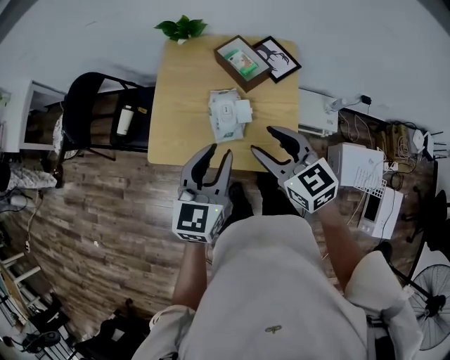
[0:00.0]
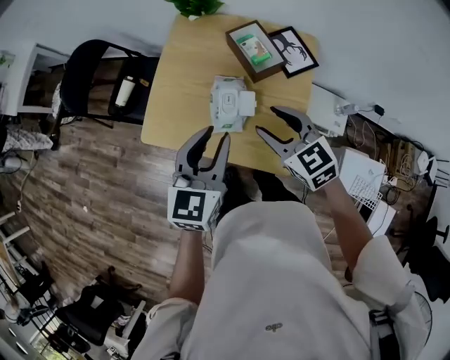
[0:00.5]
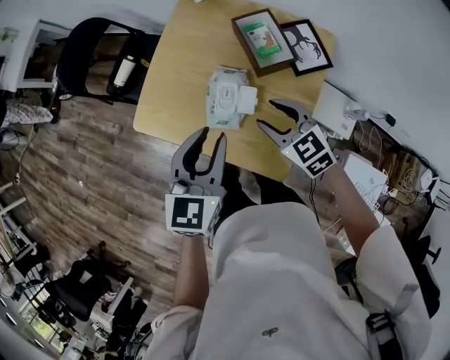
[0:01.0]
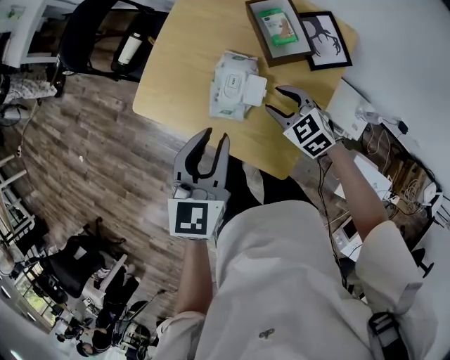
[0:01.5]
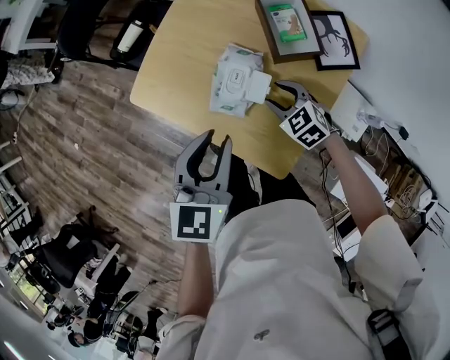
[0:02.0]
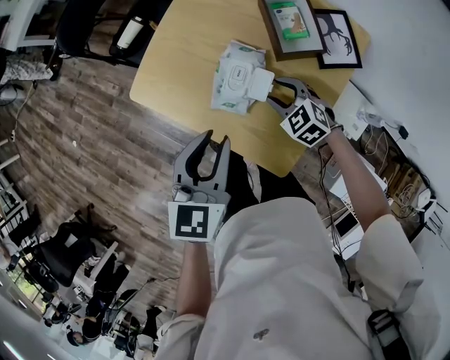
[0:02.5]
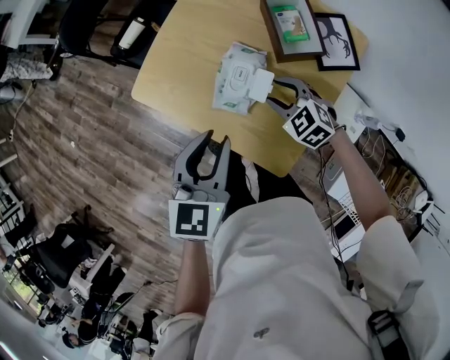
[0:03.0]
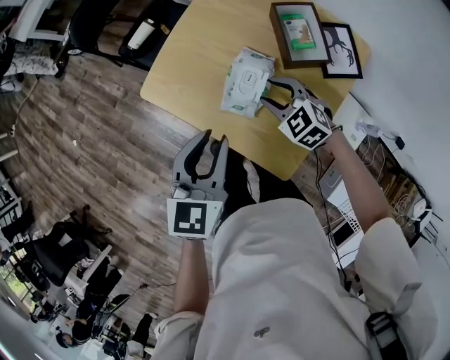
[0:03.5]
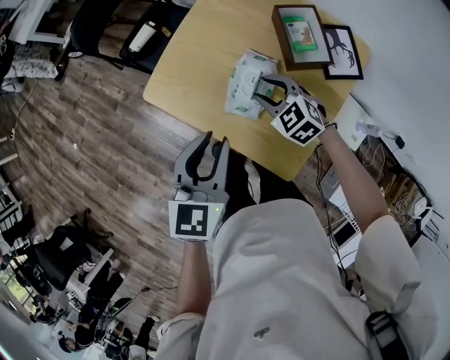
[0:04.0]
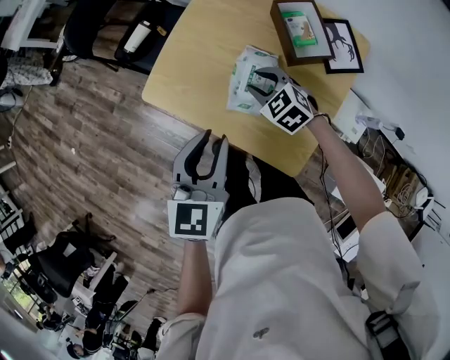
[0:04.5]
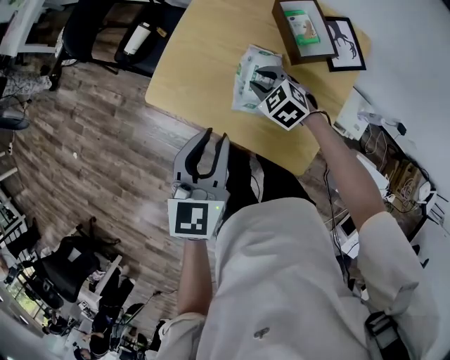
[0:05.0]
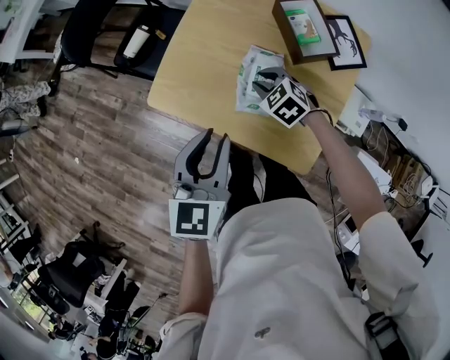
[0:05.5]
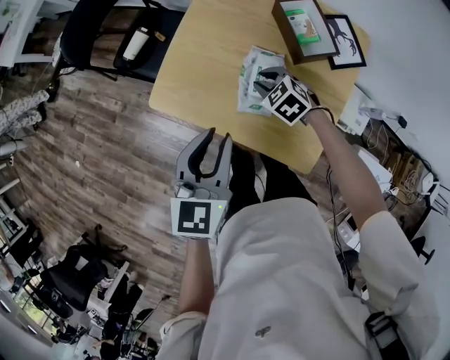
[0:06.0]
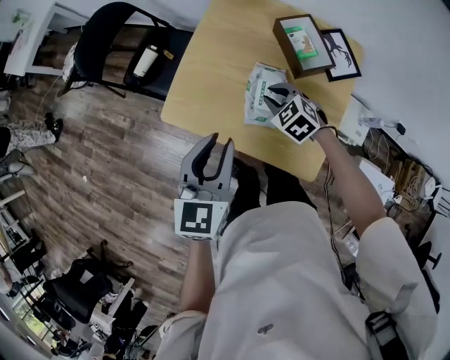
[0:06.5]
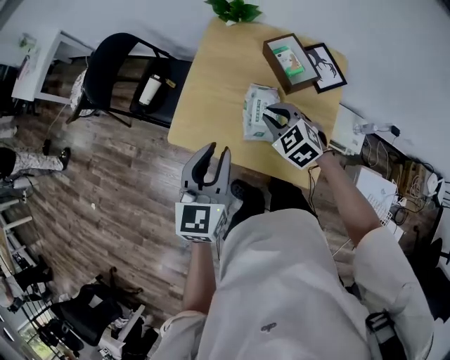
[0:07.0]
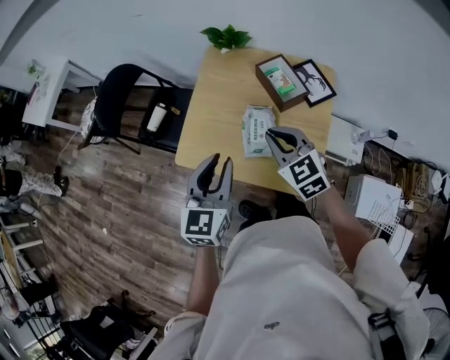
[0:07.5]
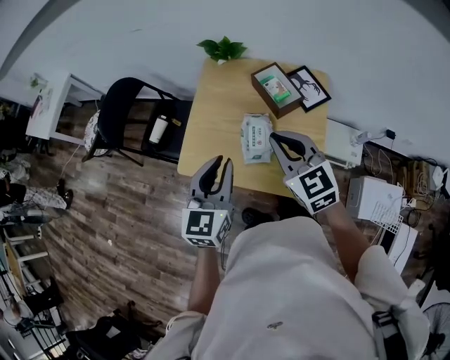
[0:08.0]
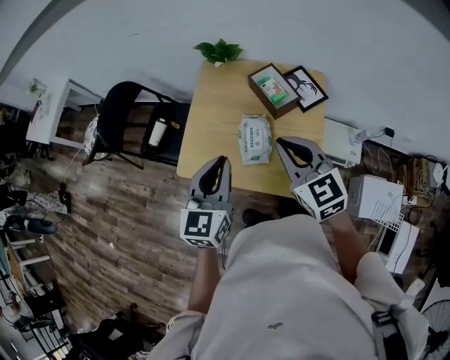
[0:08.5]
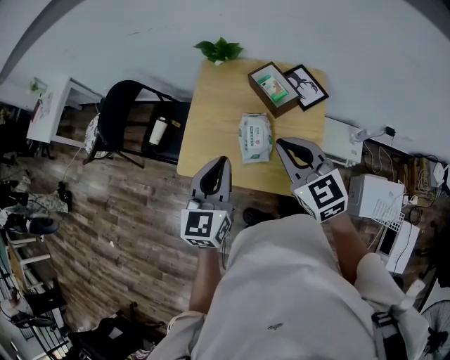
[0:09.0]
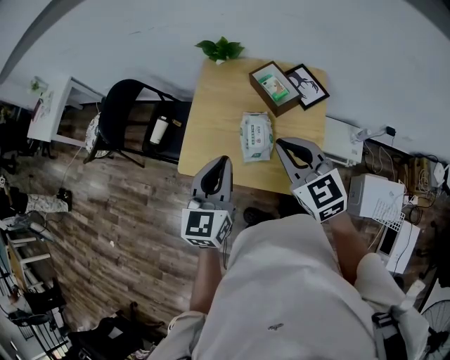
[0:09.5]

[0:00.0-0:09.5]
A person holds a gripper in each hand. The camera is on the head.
0:00.0 to 0:02.0: The left gripper goes some 10 cm downward, and changes its angle by roughly 30 degrees, while the right gripper goes approximately 30 cm downward, and rotates about 40 degrees.
0:02.0 to 0:04.0: The right gripper goes approximately 10 cm to the left and upward; the left gripper goes roughly 5 cm to the left.
0:04.0 to 0:05.5: The right gripper shifts roughly 5 cm downward.
0:05.5 to 0:07.5: The left gripper travels upward by some 10 cm, while the right gripper is displaced upward by roughly 25 cm, and swivels approximately 30 degrees.
0:07.5 to 0:09.5: The right gripper is displaced upward by some 10 cm.

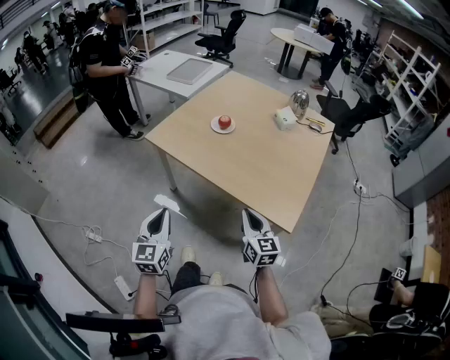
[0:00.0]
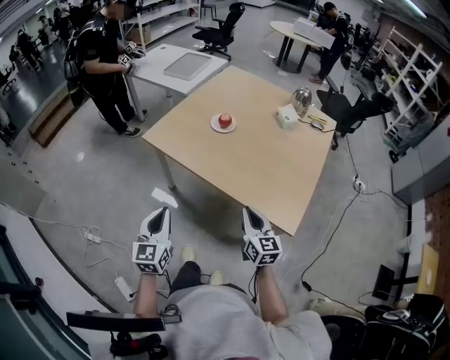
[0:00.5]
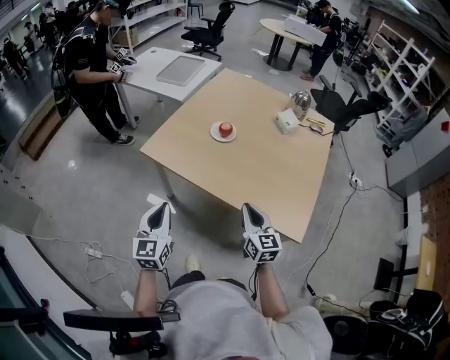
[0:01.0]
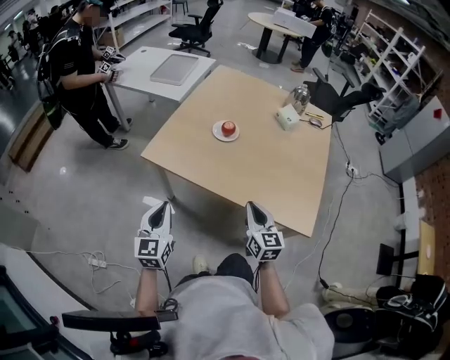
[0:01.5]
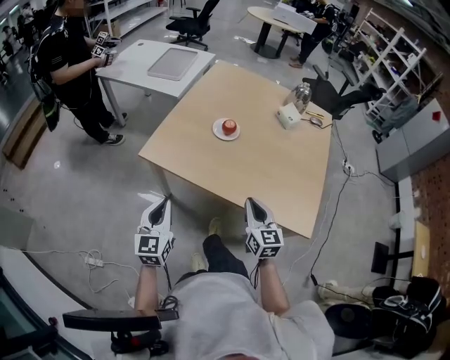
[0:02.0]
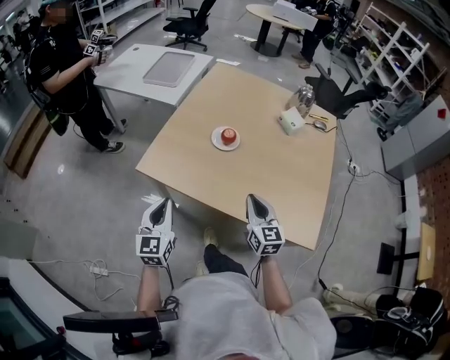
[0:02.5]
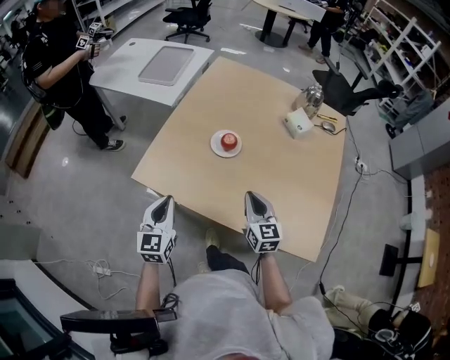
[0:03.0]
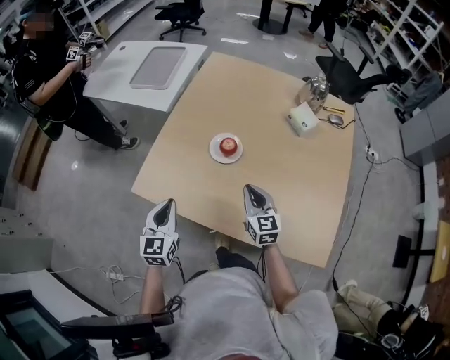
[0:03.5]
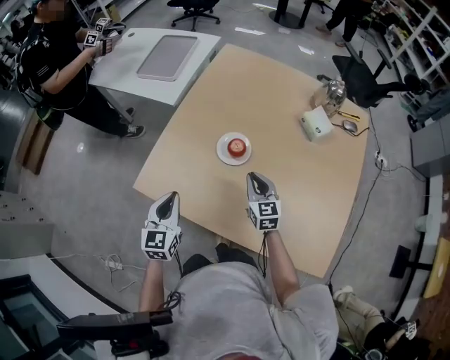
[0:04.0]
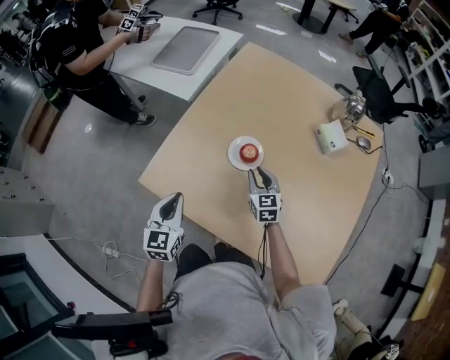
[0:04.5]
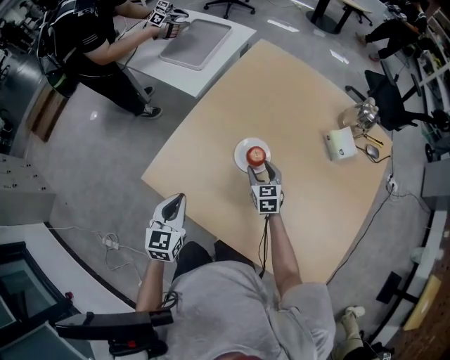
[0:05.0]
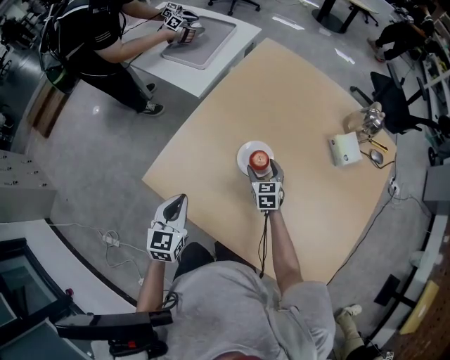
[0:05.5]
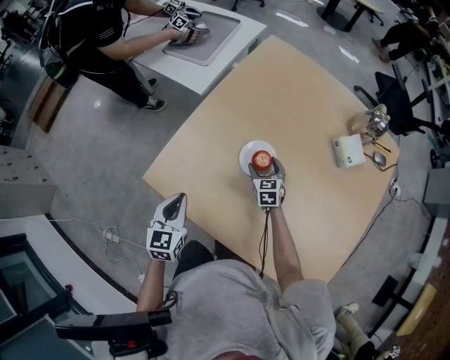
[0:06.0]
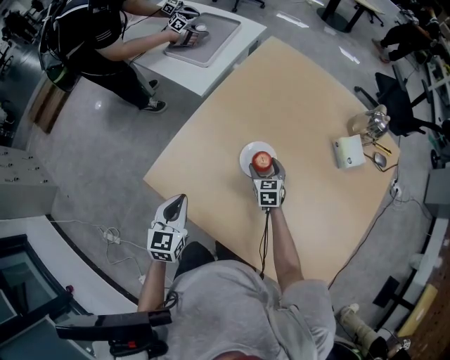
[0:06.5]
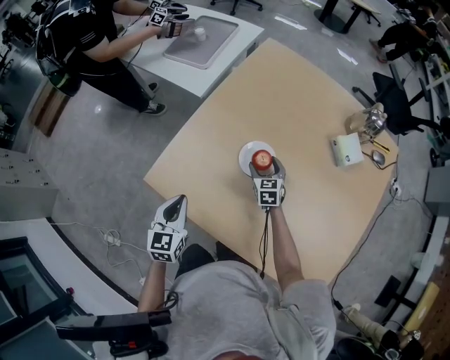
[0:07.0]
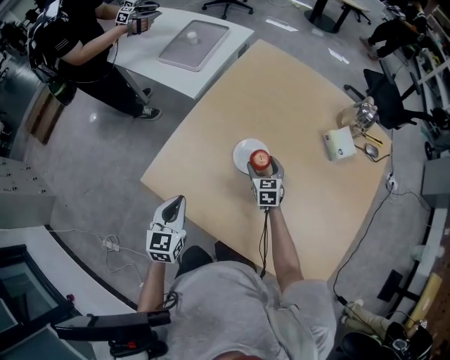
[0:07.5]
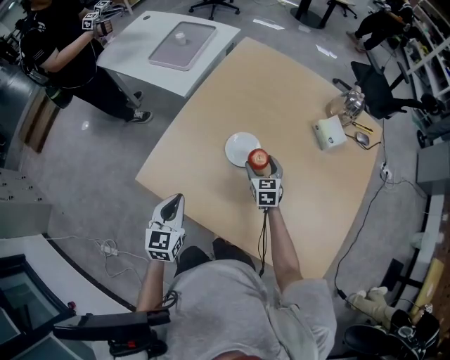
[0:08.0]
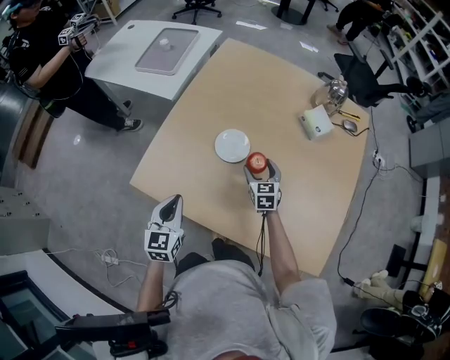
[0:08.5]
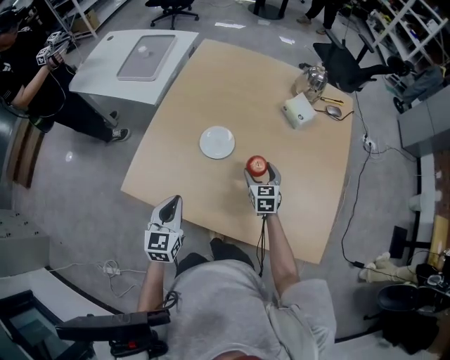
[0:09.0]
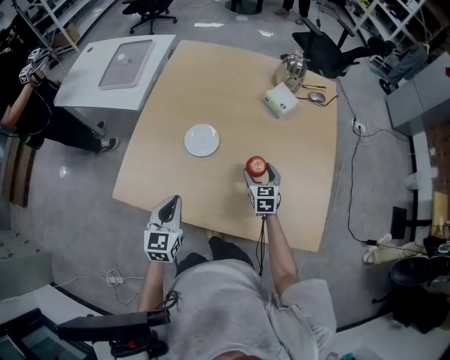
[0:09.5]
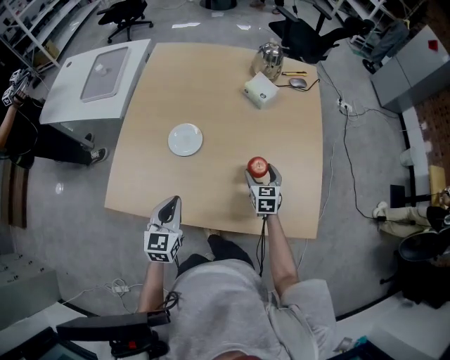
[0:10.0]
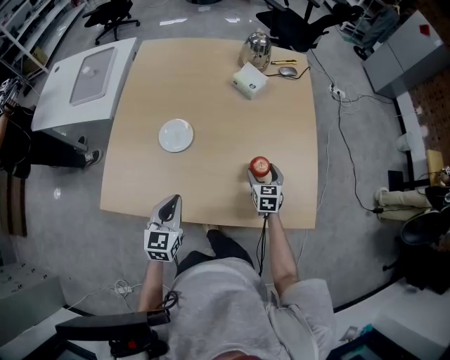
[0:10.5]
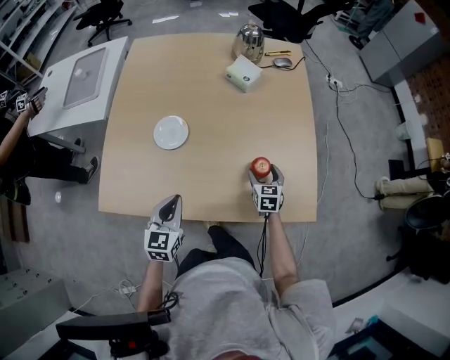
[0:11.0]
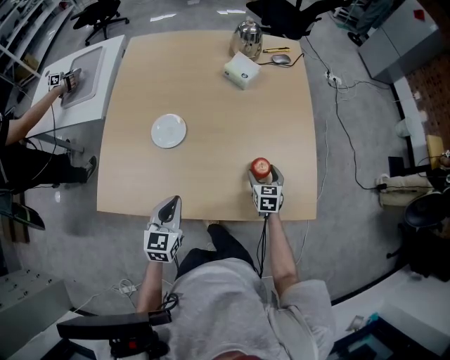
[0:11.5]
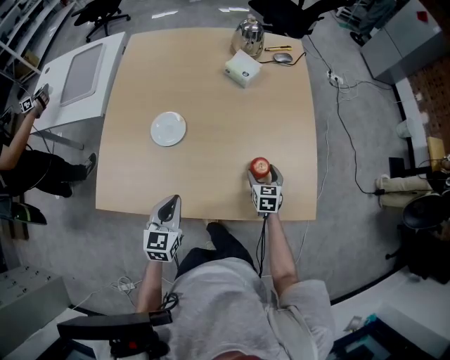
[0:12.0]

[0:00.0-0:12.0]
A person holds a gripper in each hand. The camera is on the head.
0:00.0 to 0:02.0: The two grippers go approximately 20 cm forward and to the left.
0:02.0 to 0:04.0: The two grippers go roughly 30 cm forward.
0:04.0 to 0:06.0: The left gripper moves roughly 5 cm, while the right gripper moves forward and downward, about 20 cm, and opens its fingers.
0:06.0 to 0:08.0: The right gripper is displaced upward by approximately 5 cm.
0:08.0 to 0:10.0: The left gripper is displaced to the right by approximately 15 cm, and turns by some 20 degrees; the right gripper is displaced to the right and backward by about 25 cm, and swivels approximately 20 degrees.
0:10.0 to 0:12.0: The right gripper goes about 10 cm to the right, downward and backward. The left gripper ends up some 5 cm from where it was.

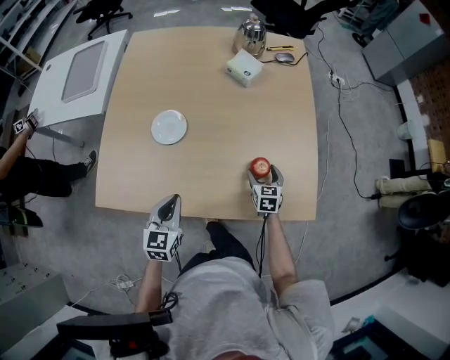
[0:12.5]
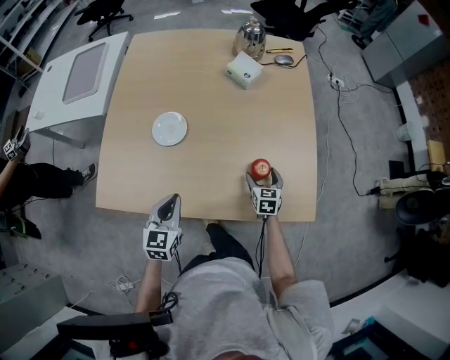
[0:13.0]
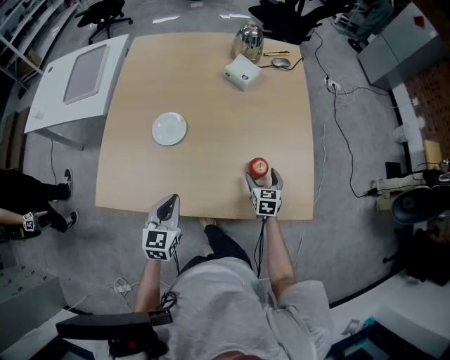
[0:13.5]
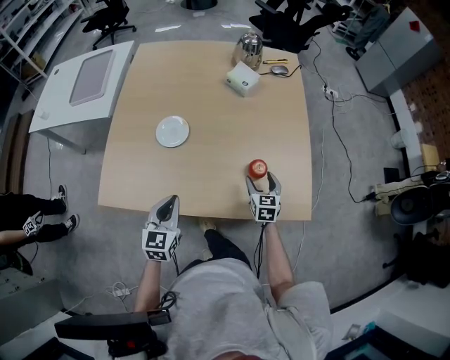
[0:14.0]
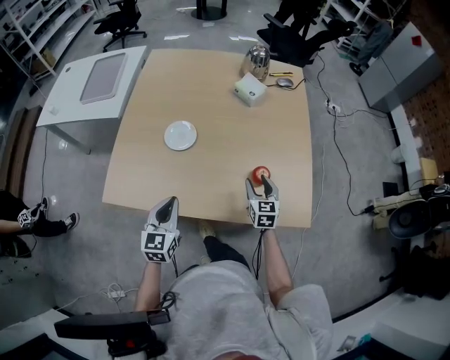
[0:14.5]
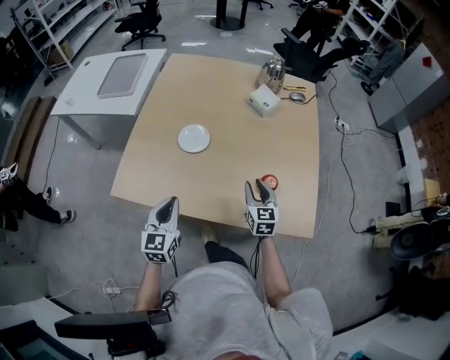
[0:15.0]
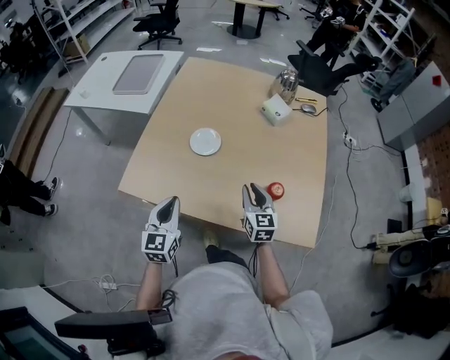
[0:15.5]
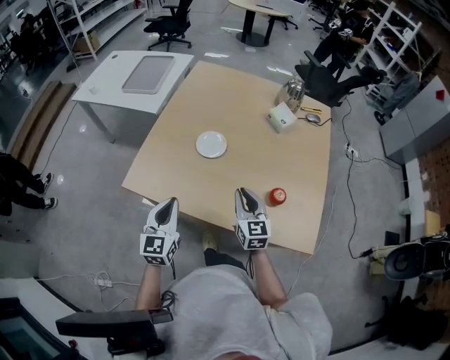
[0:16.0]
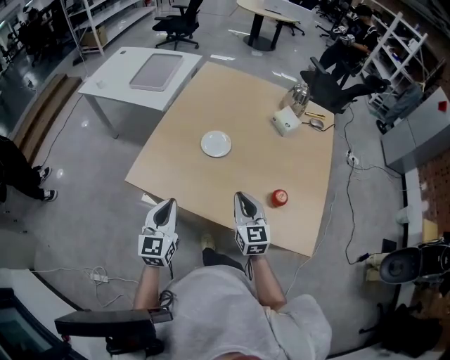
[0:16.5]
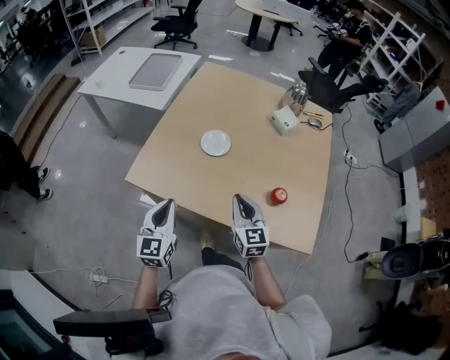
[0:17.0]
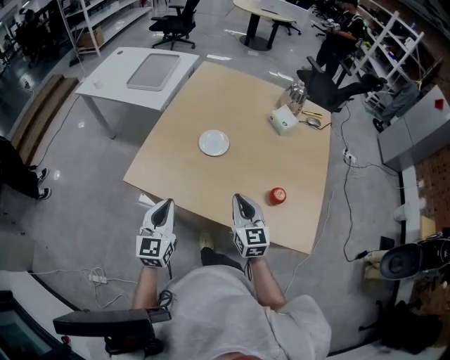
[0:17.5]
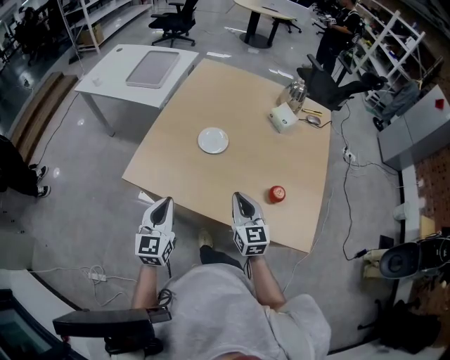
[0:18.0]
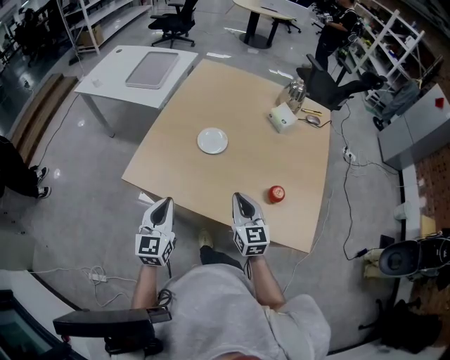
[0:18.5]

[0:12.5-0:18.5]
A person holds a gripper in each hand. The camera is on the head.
0:12.5 to 0:14.5: The right gripper moves upward, about 10 cm, and closes, while the left gripper goes roughly 5 cm upward.
0:14.5 to 0:16.5: The left gripper goes roughly 15 cm to the left, backward and upward; the right gripper shifts about 20 cm to the left and upward, rotates about 30 degrees, and closes up.
0:16.5 to 0:18.5: The grippers move only a little.
